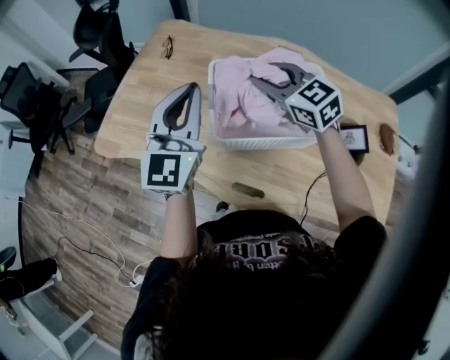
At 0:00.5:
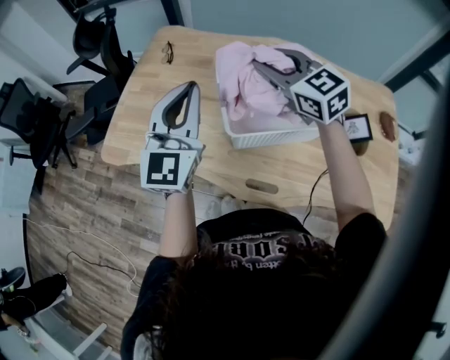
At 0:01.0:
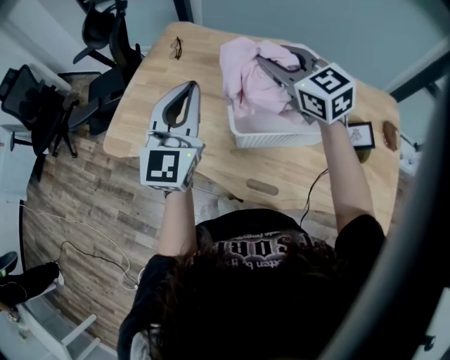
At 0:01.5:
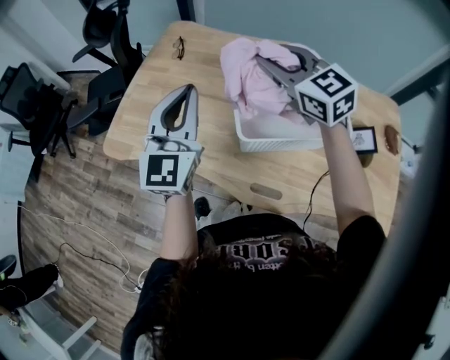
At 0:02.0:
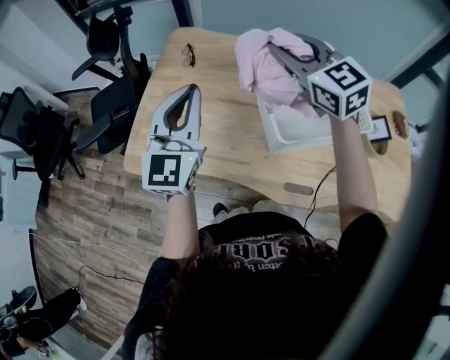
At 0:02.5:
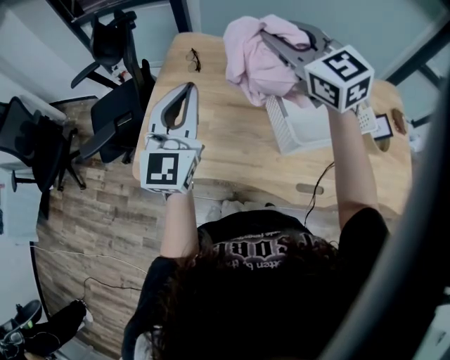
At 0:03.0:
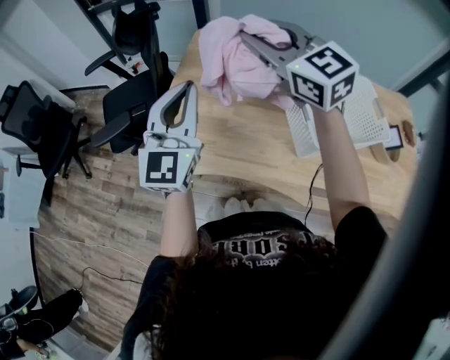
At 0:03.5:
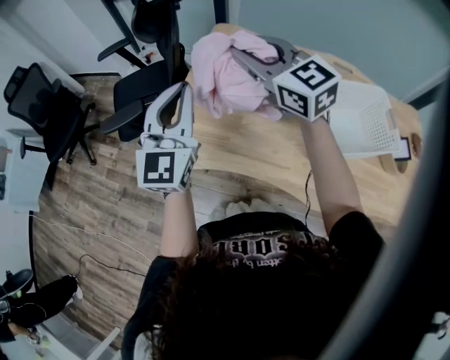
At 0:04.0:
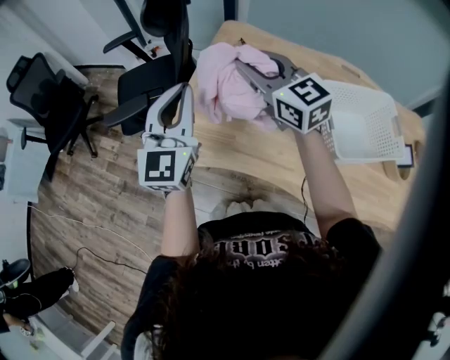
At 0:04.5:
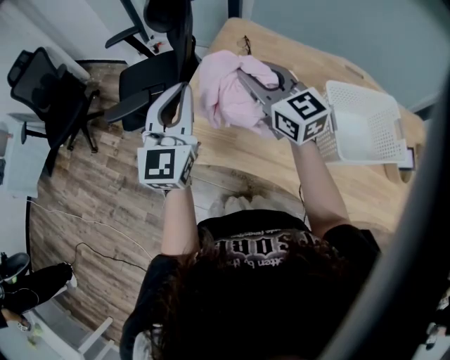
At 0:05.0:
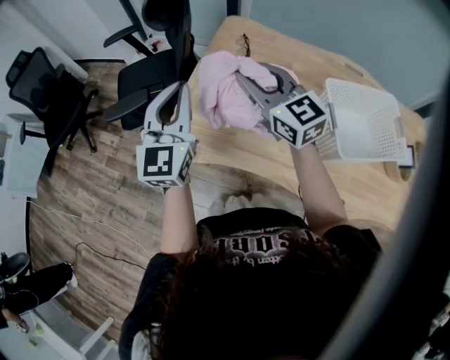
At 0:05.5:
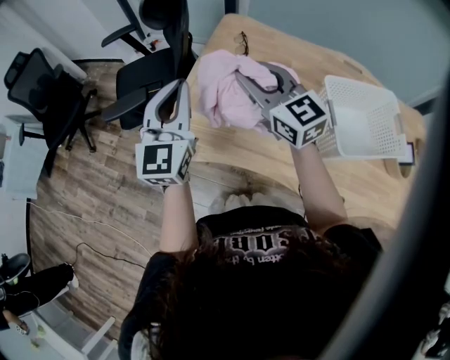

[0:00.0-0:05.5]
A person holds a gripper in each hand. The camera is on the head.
0:00.0 to 0:02.0: The right gripper heads upward and to the left, covering approximately 15 cm, while the left gripper moves to the left, about 15 cm.
0:02.0 to 0:03.5: Both grippers travel together to the left, roughly 20 cm.
0:03.5 to 0:05.5: The left gripper moves about 5 cm; the right gripper is displaced downward by approximately 10 cm.

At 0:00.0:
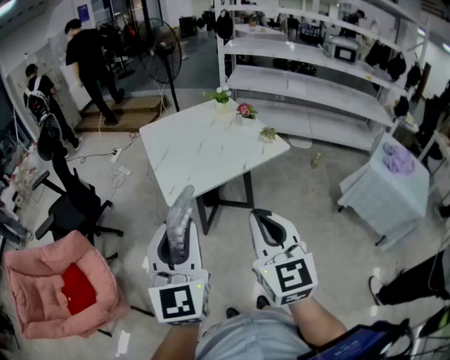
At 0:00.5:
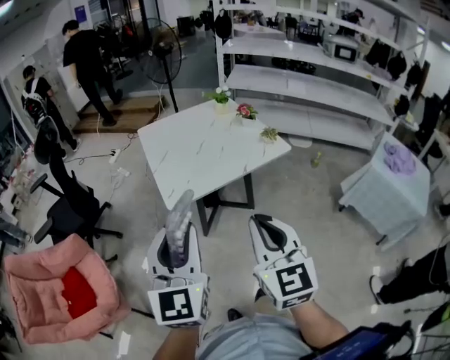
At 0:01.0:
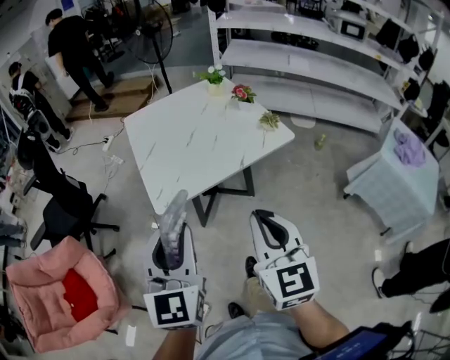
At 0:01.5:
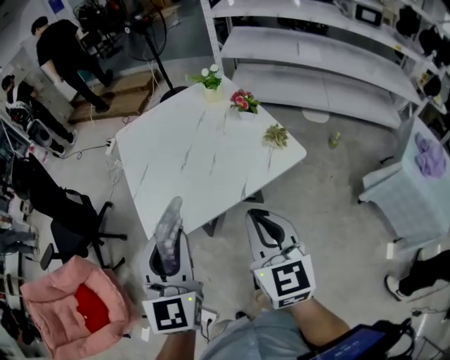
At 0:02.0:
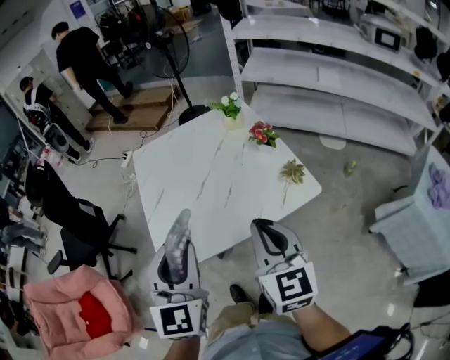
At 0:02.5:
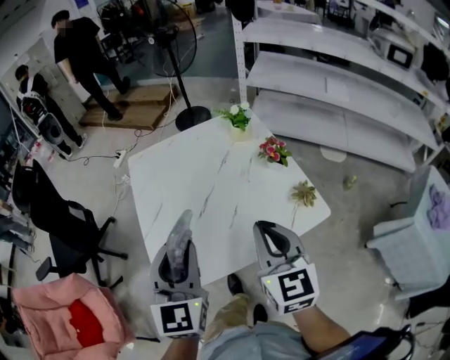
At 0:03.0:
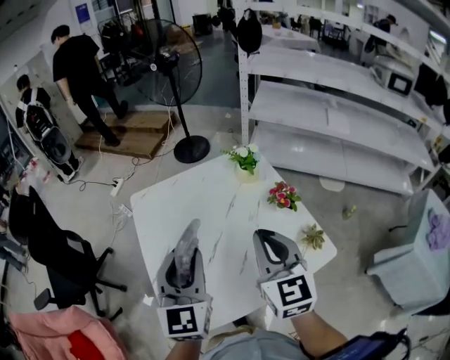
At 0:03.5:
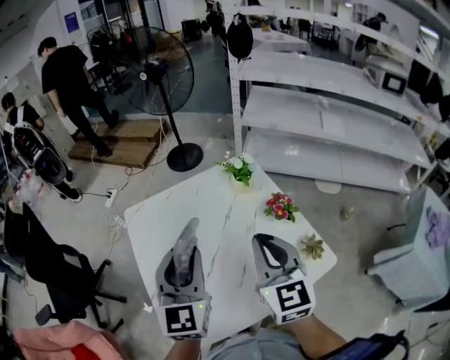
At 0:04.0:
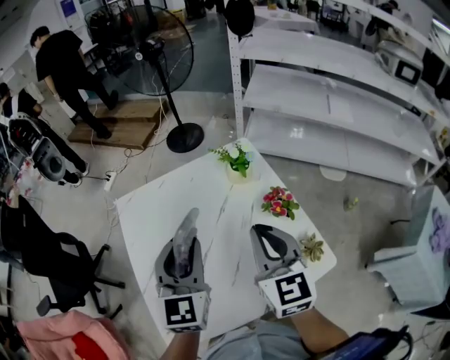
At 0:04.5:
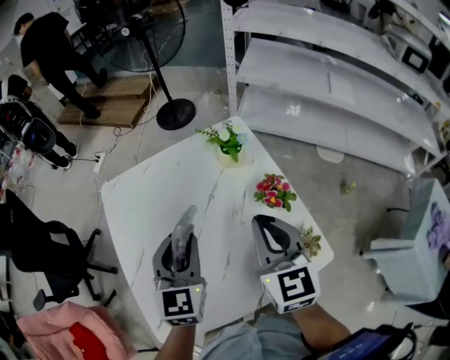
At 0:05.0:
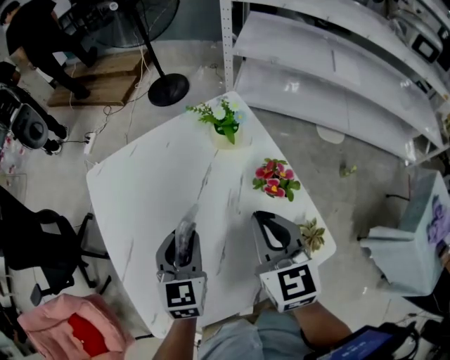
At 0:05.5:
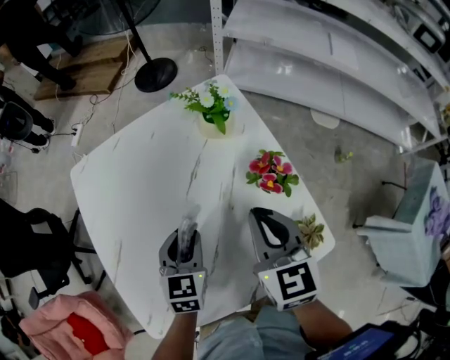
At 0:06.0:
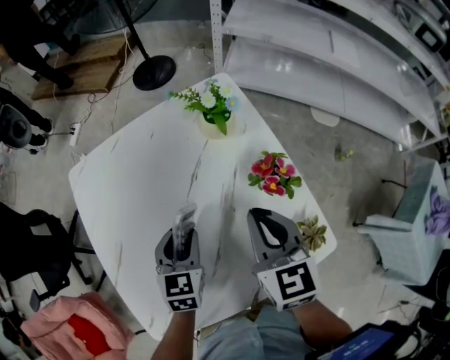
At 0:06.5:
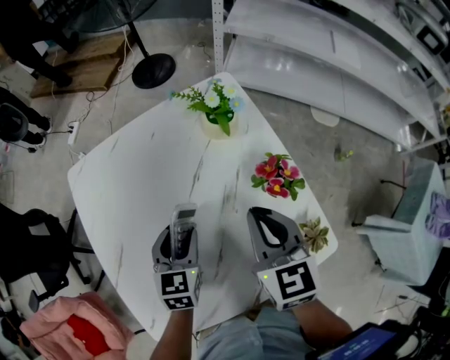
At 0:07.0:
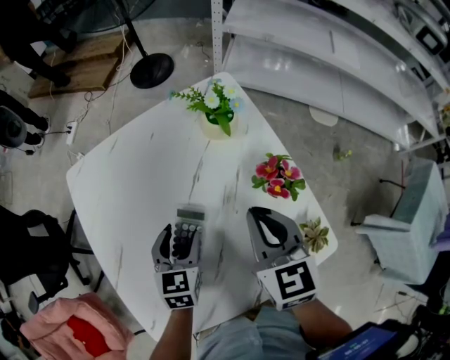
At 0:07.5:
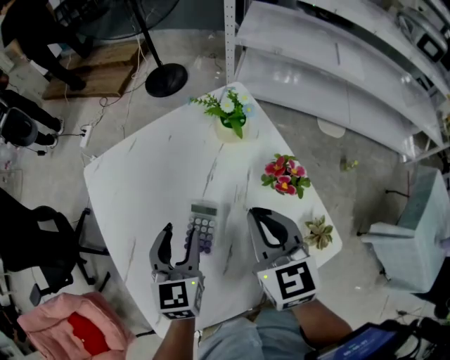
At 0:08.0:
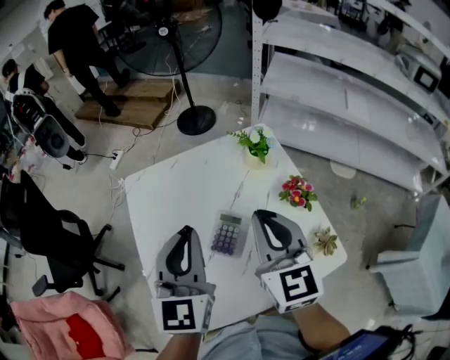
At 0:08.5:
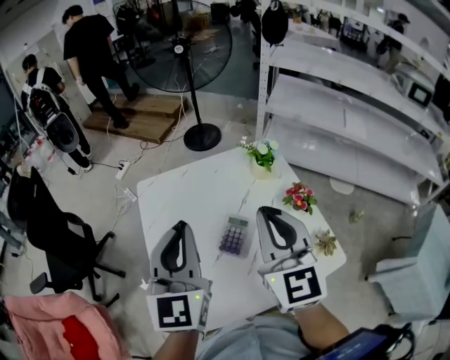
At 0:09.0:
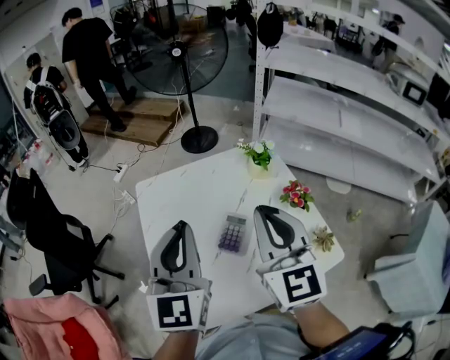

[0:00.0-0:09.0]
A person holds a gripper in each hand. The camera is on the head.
0:00.0 to 0:02.0: Both grippers move forward, some 30 cm.
0:02.0 to 0:04.5: The grippers both shift forward by approximately 30 cm.
0:04.5 to 0:07.0: The right gripper moves downward, approximately 10 cm. The left gripper shifts approximately 20 cm downward, rotates about 20 degrees, and opens.
0:07.0 to 0:09.0: The left gripper heads upward, covering approximately 30 cm, angles its fingers upward, by some 40 degrees, and closes. Meanwhile the right gripper travels upward, to the left and backward by about 25 cm, and swivels some 30 degrees.

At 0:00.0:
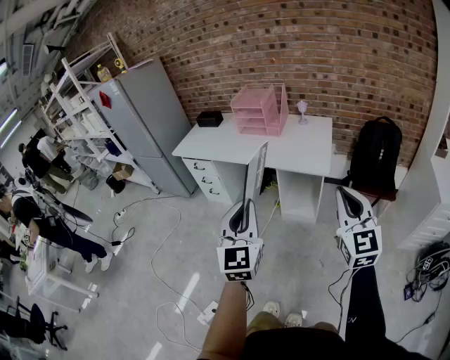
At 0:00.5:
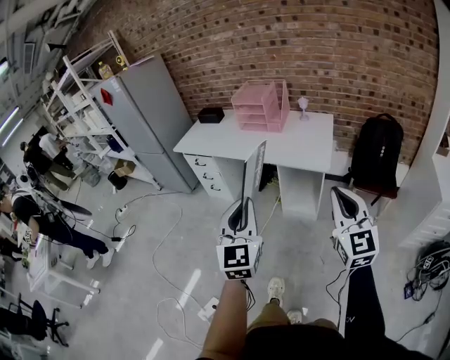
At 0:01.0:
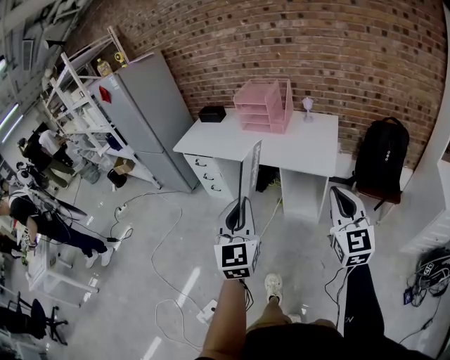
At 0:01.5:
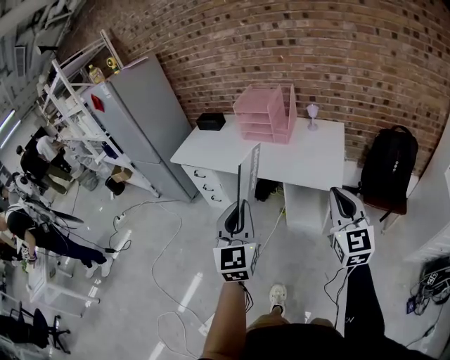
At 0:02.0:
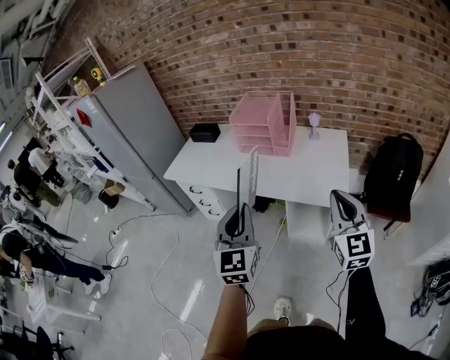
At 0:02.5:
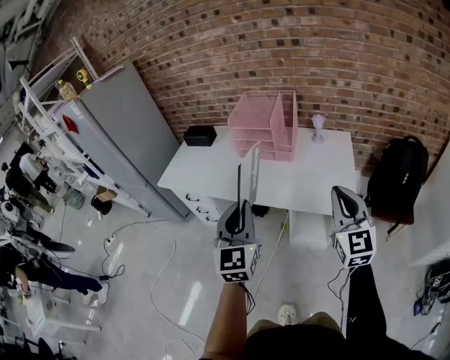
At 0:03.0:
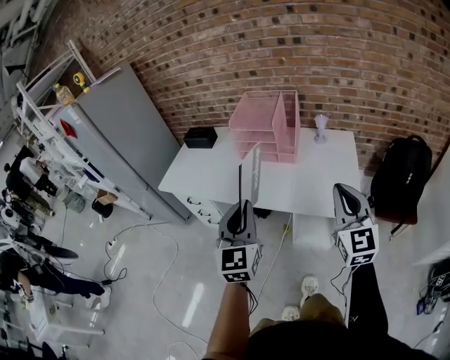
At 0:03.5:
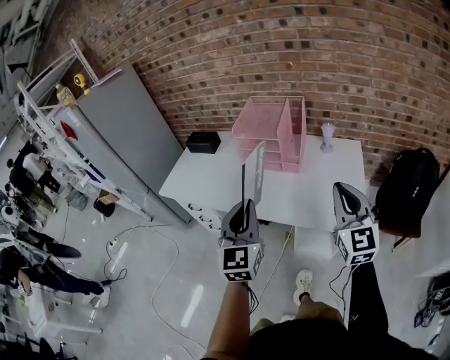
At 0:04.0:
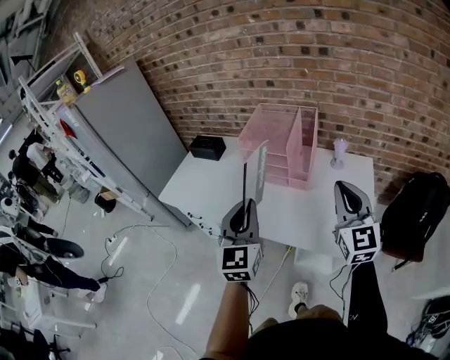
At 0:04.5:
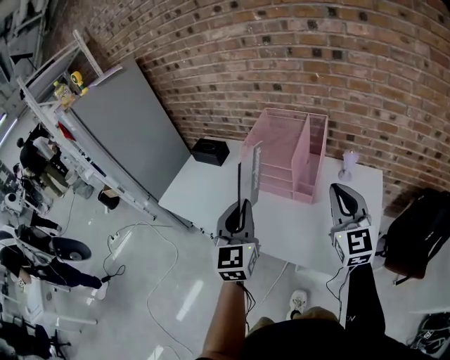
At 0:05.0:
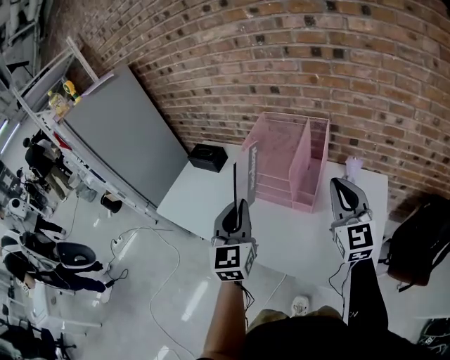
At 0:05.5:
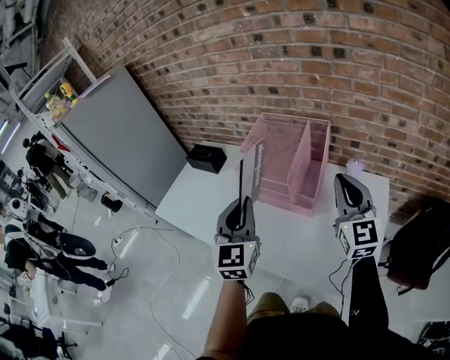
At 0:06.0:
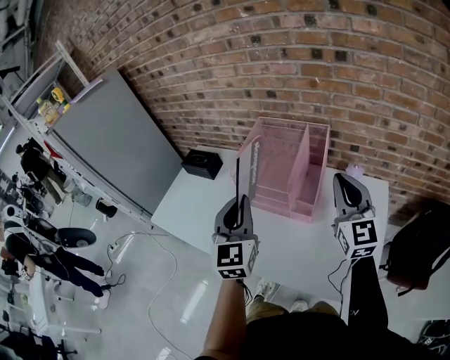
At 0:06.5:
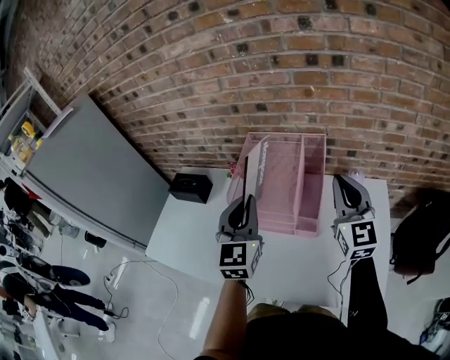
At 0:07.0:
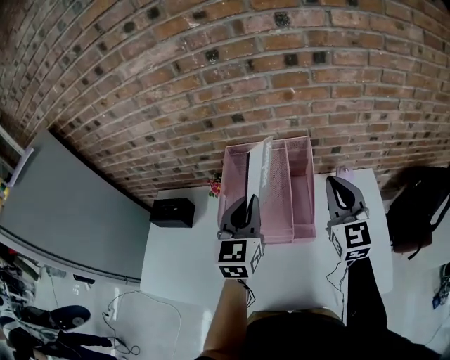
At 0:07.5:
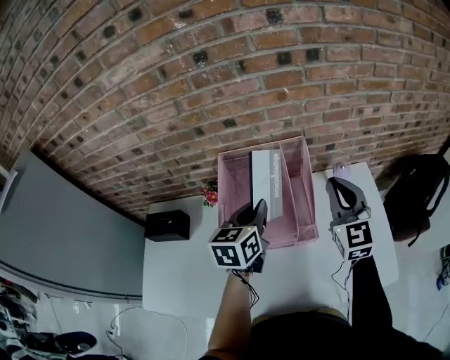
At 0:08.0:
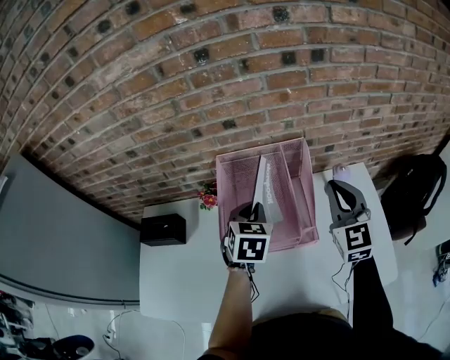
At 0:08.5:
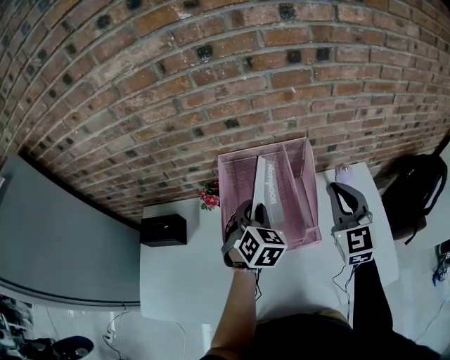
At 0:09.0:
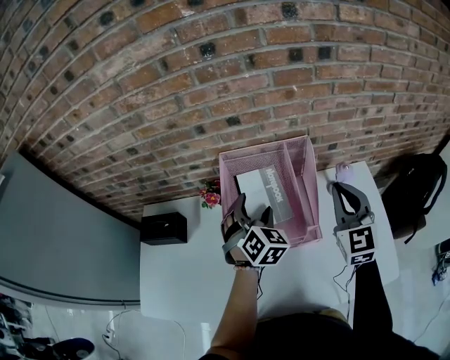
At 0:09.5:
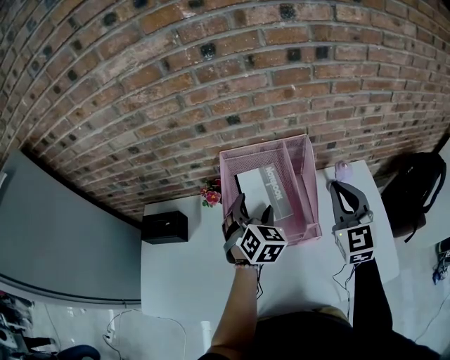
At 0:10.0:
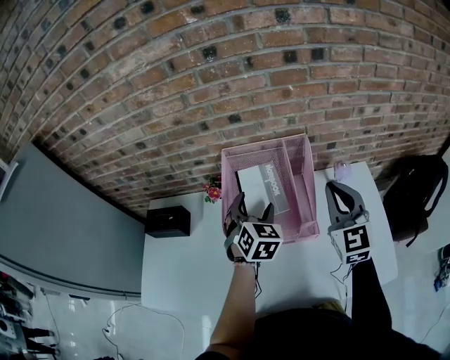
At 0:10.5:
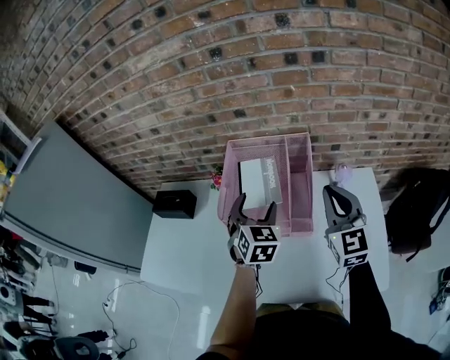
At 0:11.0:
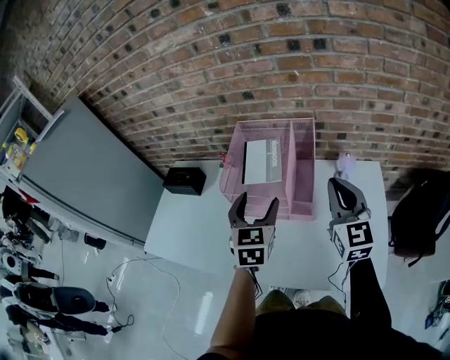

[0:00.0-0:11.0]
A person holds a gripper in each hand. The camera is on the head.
0:00.0 to 0:02.0: Both grippers travel together forward, some 25 cm.
0:02.0 to 0:03.5: The grippers both shift forward by roughly 20 cm.
0:03.5 to 0:05.5: Both grippers move forward, some 25 cm.
0:05.5 to 0:07.5: The left gripper ends up about 25 cm from where it was, and rotates about 50 degrees; the right gripper shifts by roughly 15 cm, and rotates roughly 30 degrees.
0:07.5 to 0:09.0: The left gripper heads downward, covering some 5 cm, rotates around the line of its fingers by some 50 degrees, clockwise from behind, and opens its fingers.
0:09.0 to 0:11.0: The left gripper shifts some 15 cm backward, and rotates some 40 degrees. Meanwhile the right gripper travels backward by about 10 cm, and changes its angle by approximately 20 degrees.

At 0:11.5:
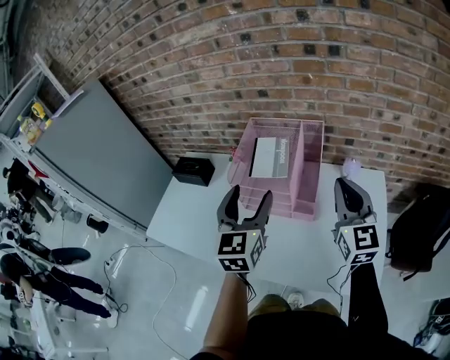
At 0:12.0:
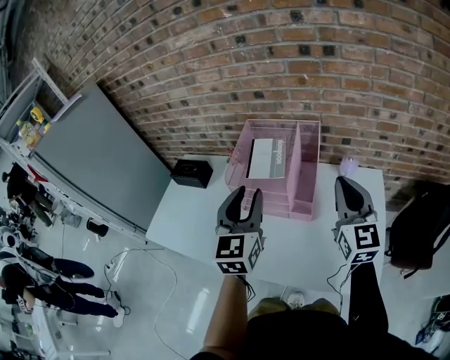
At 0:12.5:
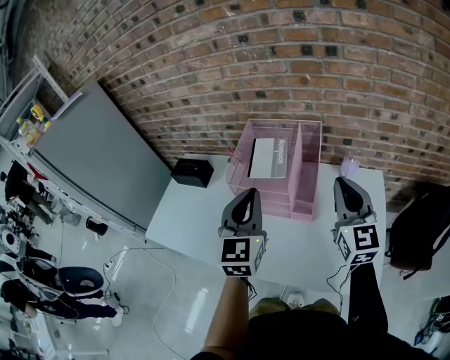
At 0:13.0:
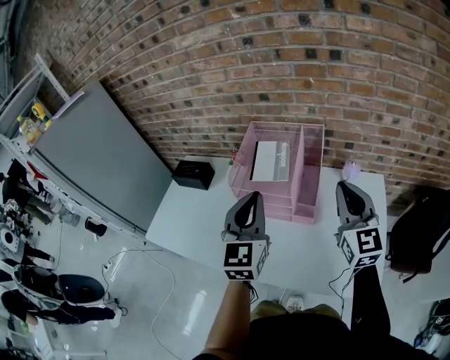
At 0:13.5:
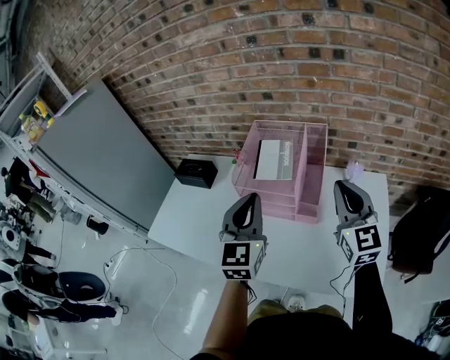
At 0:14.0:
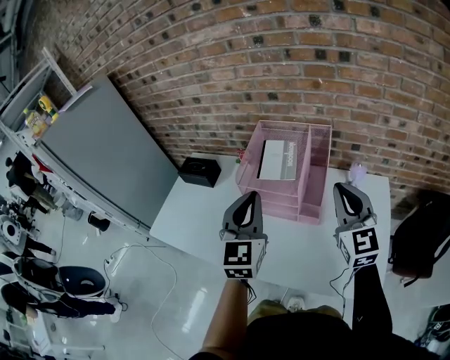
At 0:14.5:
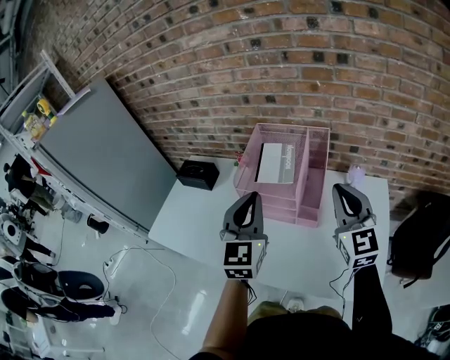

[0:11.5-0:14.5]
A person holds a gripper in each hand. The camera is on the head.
0:11.5 to 0:13.0: The left gripper closes its fingers.
0:13.0 to 0:14.5: The grippers move only a little.
